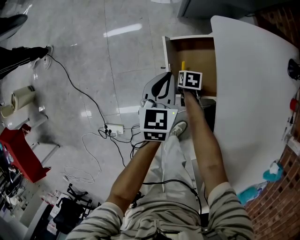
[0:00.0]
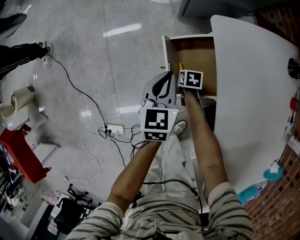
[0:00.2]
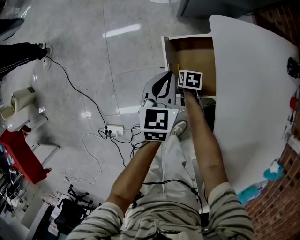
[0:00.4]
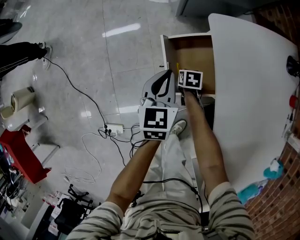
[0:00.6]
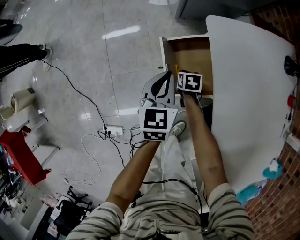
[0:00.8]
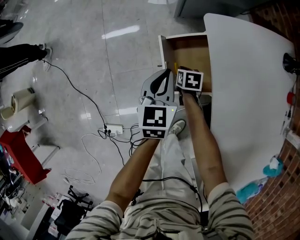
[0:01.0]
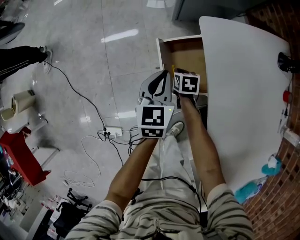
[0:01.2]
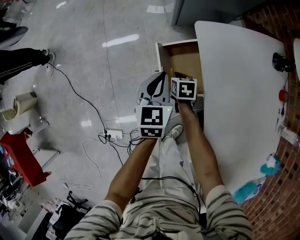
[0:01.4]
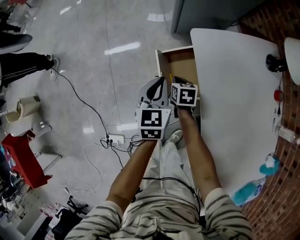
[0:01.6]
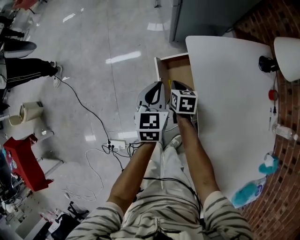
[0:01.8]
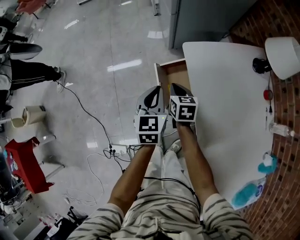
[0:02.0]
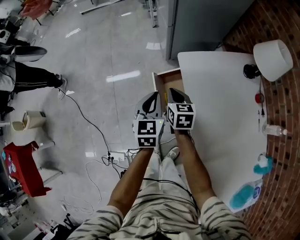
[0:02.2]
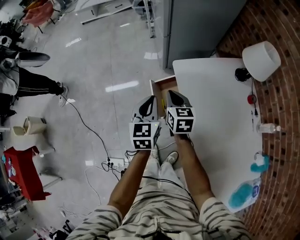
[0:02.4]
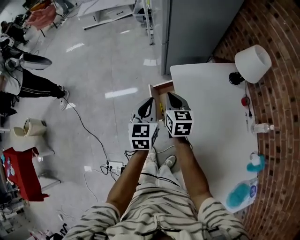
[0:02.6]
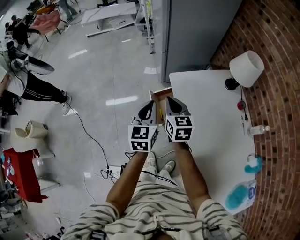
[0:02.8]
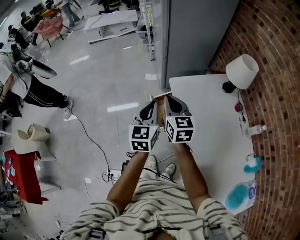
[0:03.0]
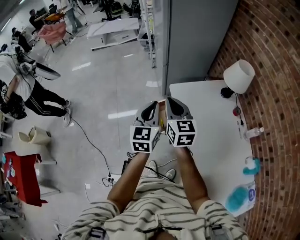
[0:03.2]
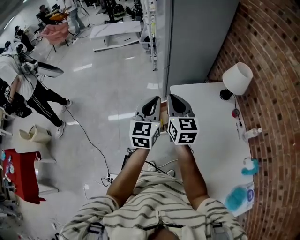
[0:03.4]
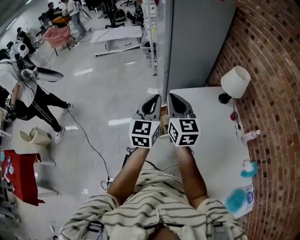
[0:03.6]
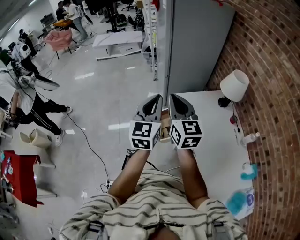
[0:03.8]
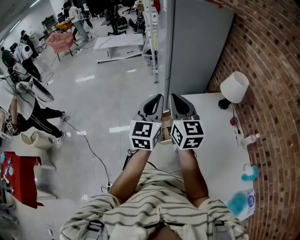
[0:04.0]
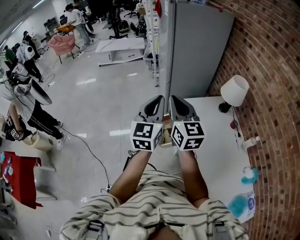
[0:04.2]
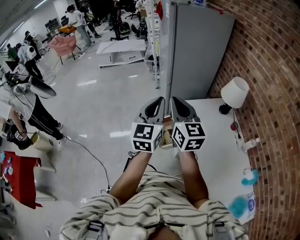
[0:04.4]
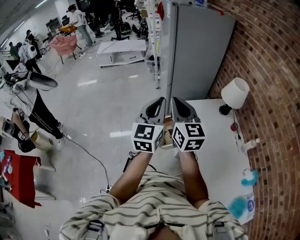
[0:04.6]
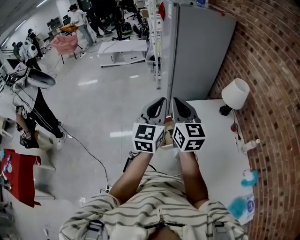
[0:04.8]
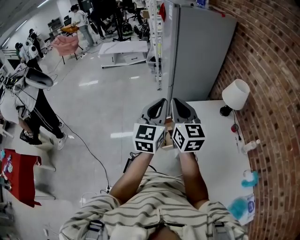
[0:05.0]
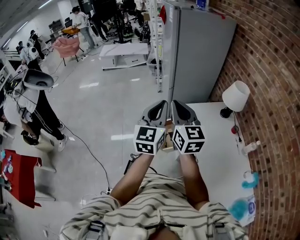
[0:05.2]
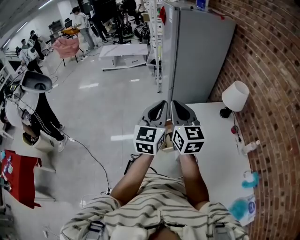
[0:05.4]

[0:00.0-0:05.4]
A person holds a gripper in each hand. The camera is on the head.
0:00.0 to 0:01.4: The right gripper goes about 10 cm upward. Meanwhile the left gripper travels upward by some 5 cm.
0:01.4 to 0:02.8: The left gripper shifts about 25 cm upward. The right gripper shifts approximately 40 cm upward, and angles its fingers upward, by roughly 40 degrees.
0:02.8 to 0:04.0: The two grippers go roughly 20 cm upward. The right gripper changes its angle by approximately 20 degrees.
0:04.0 to 0:05.4: There are only small adjustments of the grippers.

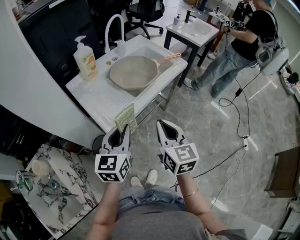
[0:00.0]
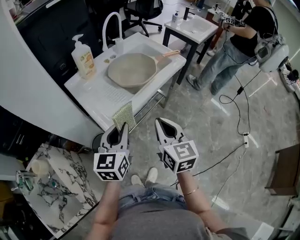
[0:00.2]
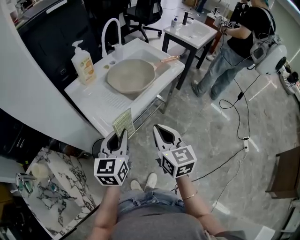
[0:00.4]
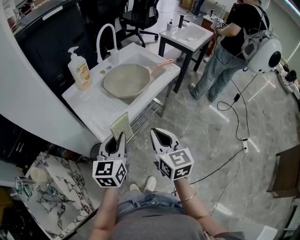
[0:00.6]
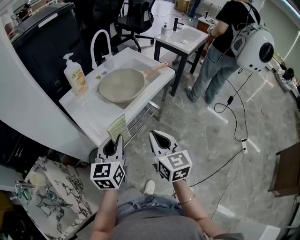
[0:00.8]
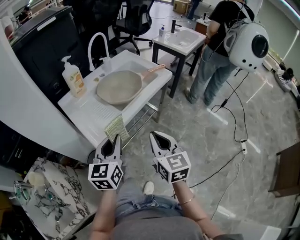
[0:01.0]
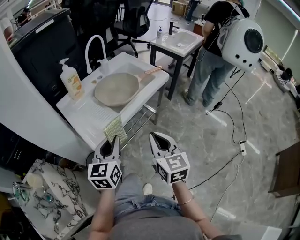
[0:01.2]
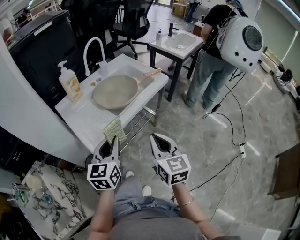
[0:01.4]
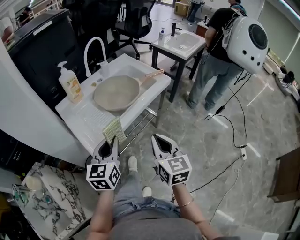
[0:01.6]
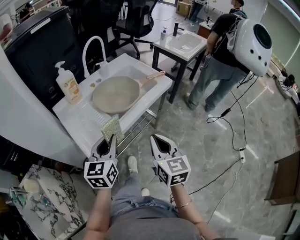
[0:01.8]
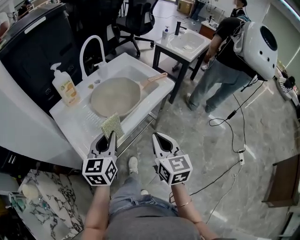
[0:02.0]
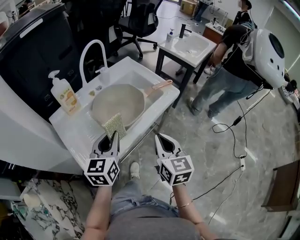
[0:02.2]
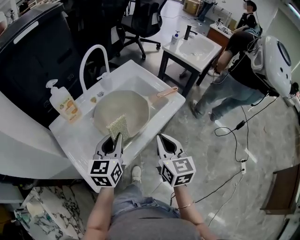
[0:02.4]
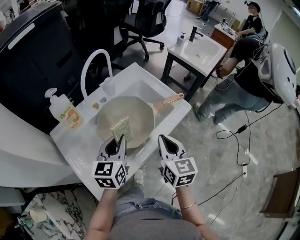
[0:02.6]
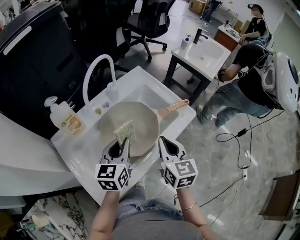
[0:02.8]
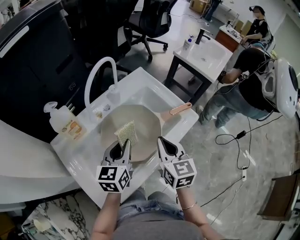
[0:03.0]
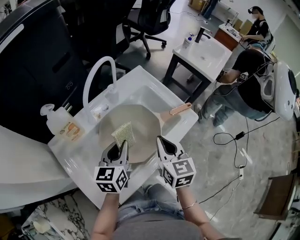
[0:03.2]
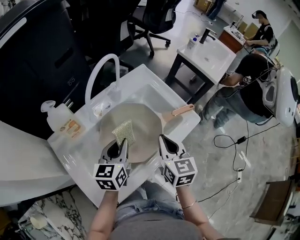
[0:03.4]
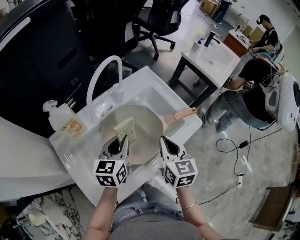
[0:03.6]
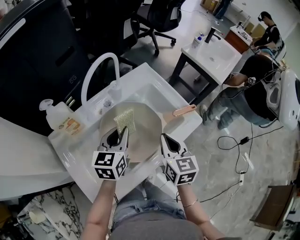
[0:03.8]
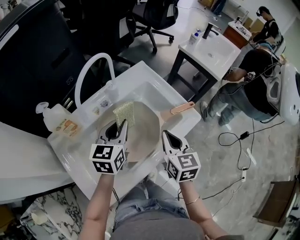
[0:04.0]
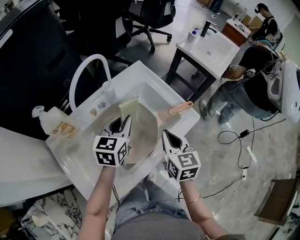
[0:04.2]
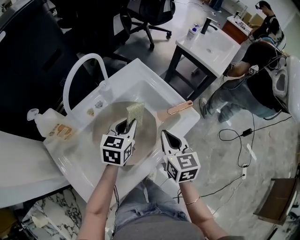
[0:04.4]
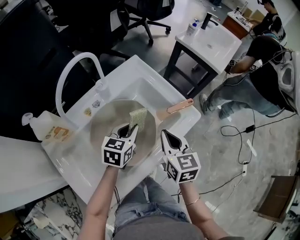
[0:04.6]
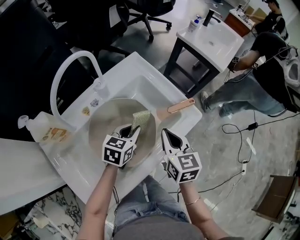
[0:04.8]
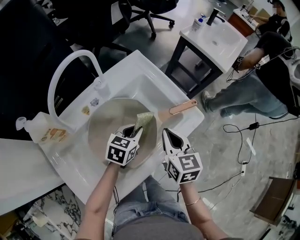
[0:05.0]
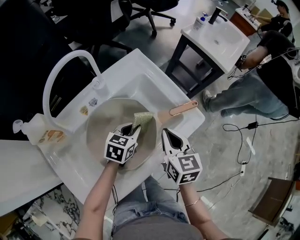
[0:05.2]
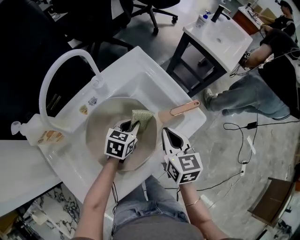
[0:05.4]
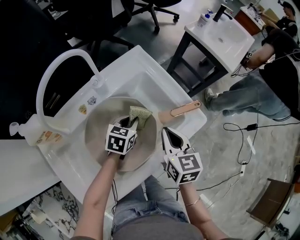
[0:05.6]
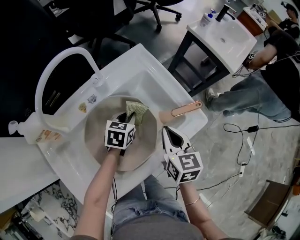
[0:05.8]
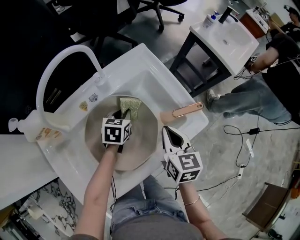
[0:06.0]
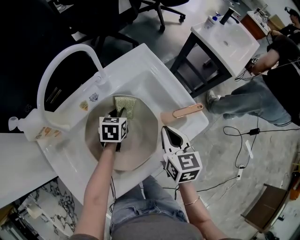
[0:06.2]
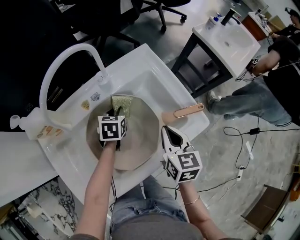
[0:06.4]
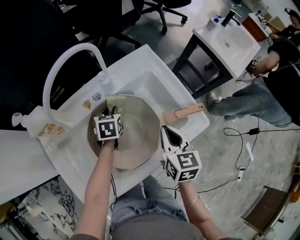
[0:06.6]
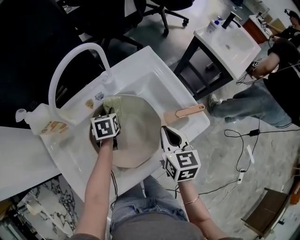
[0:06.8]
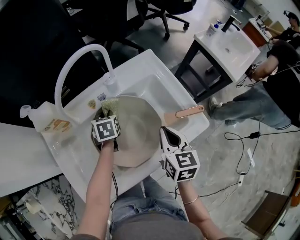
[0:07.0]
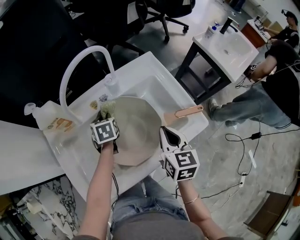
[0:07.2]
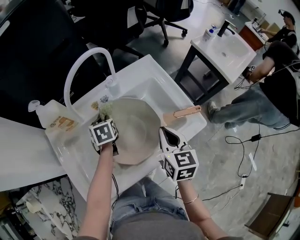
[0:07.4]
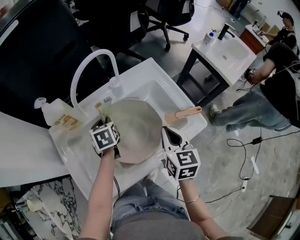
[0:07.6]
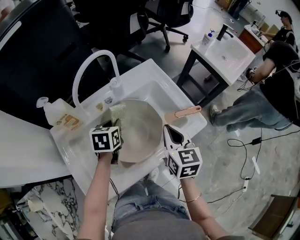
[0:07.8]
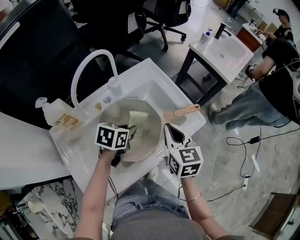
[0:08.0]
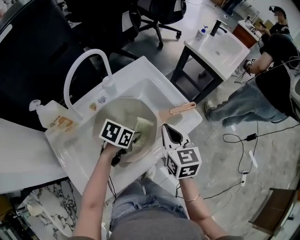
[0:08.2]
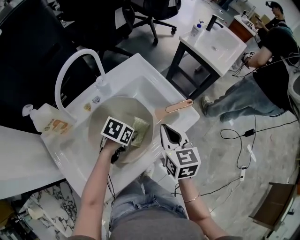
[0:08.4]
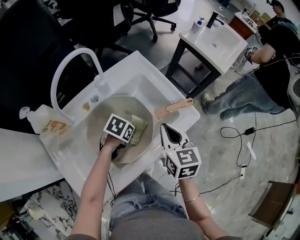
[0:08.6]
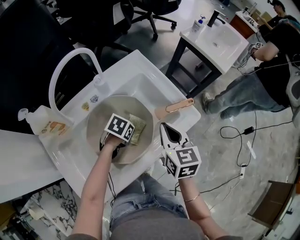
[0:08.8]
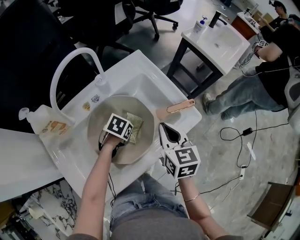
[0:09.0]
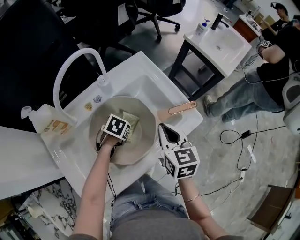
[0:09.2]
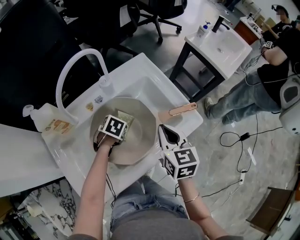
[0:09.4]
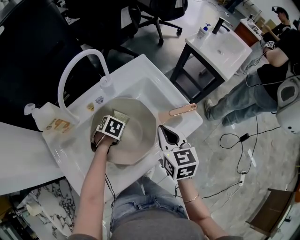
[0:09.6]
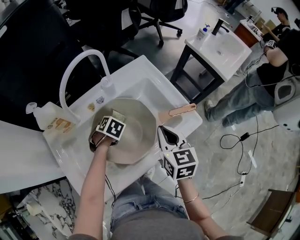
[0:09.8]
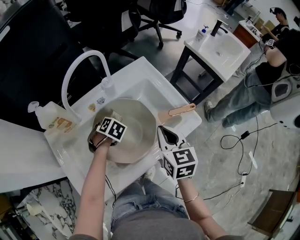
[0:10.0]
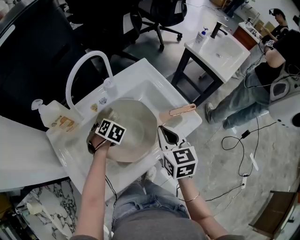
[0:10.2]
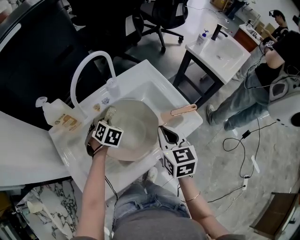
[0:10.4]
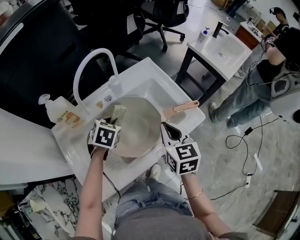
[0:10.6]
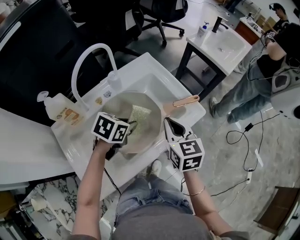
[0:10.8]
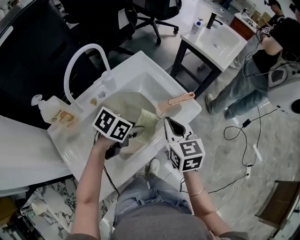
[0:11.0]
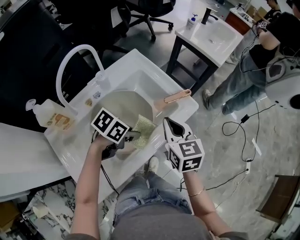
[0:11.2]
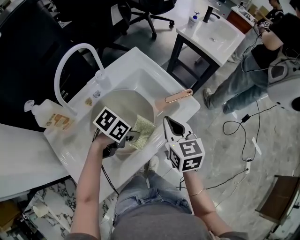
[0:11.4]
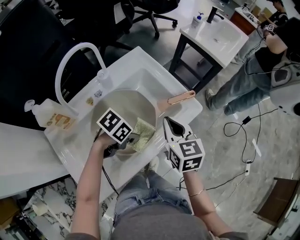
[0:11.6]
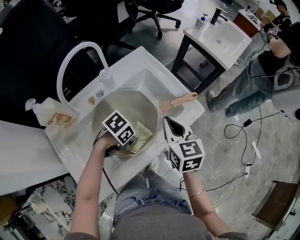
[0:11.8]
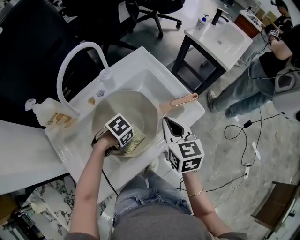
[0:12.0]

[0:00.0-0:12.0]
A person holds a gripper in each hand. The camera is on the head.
0:00.0 to 0:01.6: The right gripper shifts roughly 10 cm to the right. Meanwhile the left gripper moves to the right, roughly 5 cm.
0:01.6 to 0:03.0: The two grippers go about 30 cm forward.
0:03.0 to 0:04.4: The left gripper moves forward and to the right, approximately 10 cm. Meanwhile the right gripper heads forward, covering about 5 cm.
0:04.4 to 0:06.0: The left gripper shifts roughly 15 cm downward and forward, and swivels about 20 degrees; the right gripper moves forward, roughly 5 cm.
0:06.0 to 0:07.6: The right gripper moves upward, roughly 5 cm. The left gripper shifts about 15 cm to the left and upward, and changes its angle by some 30 degrees.
0:07.6 to 0:09.0: The left gripper ends up about 20 cm from where it was, and rotates some 60 degrees.
0:09.0 to 0:10.4: The left gripper changes place by approximately 15 cm, and rotates some 40 degrees.
0:10.4 to 0:12.0: The left gripper ends up some 20 cm from where it was, and changes its angle by approximately 60 degrees.

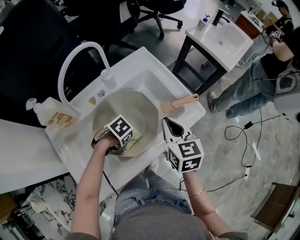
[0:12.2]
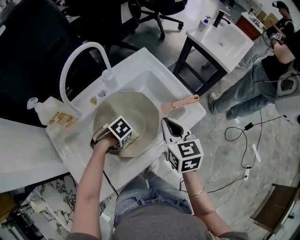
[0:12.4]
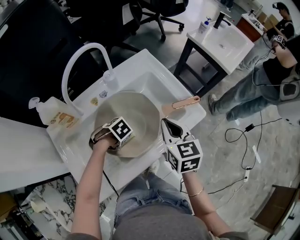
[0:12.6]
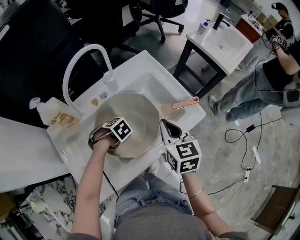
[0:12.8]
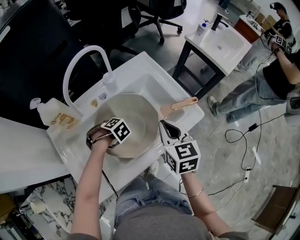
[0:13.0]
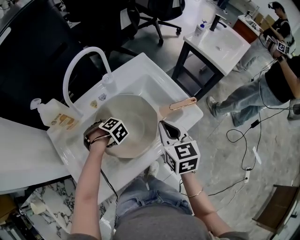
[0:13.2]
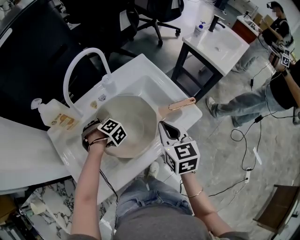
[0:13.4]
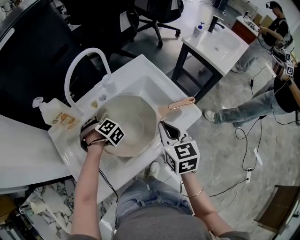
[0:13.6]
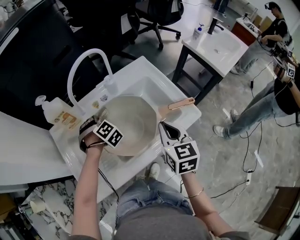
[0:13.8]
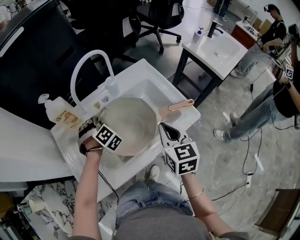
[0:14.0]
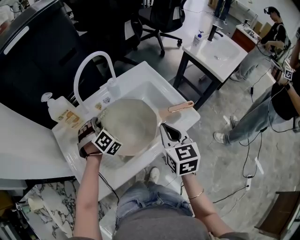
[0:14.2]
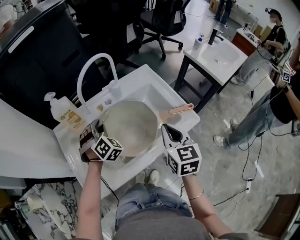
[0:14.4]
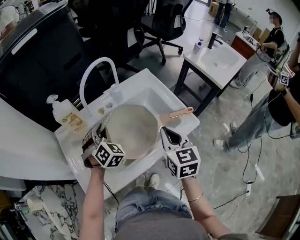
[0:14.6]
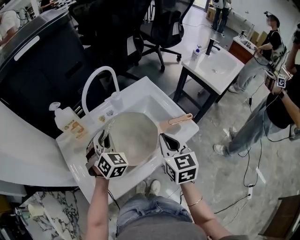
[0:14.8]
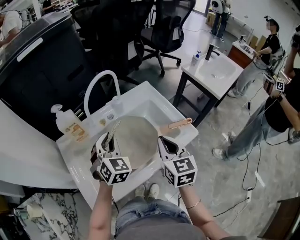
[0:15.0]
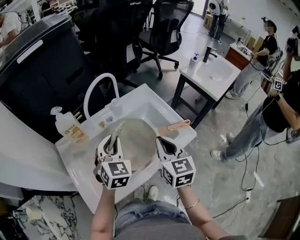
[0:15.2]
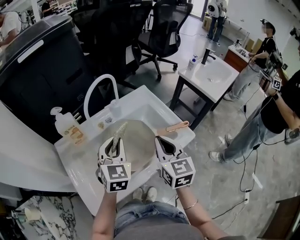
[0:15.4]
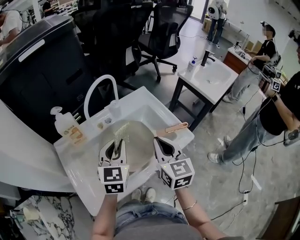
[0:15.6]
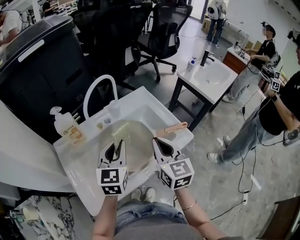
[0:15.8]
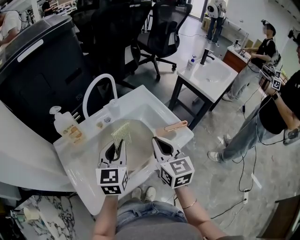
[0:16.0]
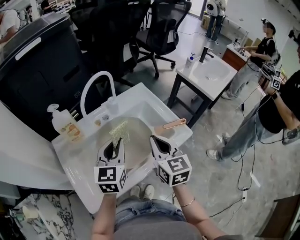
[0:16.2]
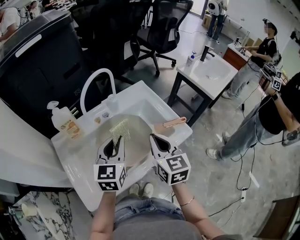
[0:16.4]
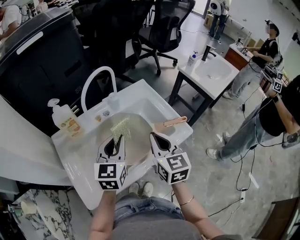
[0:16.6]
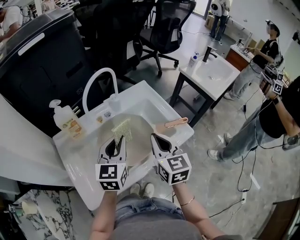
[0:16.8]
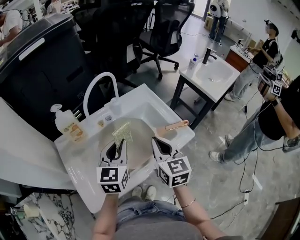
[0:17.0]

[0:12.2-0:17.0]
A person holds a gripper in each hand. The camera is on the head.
0:12.2 to 0:13.8: The left gripper shifts by roughly 15 cm, and turns by roughly 60 degrees.
0:13.8 to 0:15.4: The right gripper goes some 5 cm upward, while the left gripper heads upward and backward, covering about 20 cm, and points its fingers roughly 30 degrees further upward.
0:15.4 to 0:17.0: The left gripper turns by about 20 degrees.

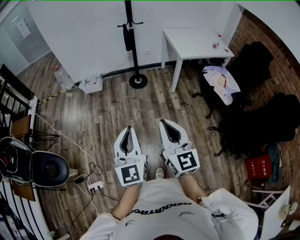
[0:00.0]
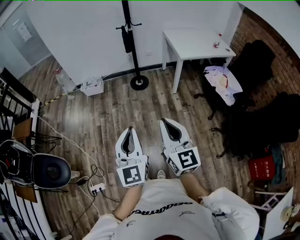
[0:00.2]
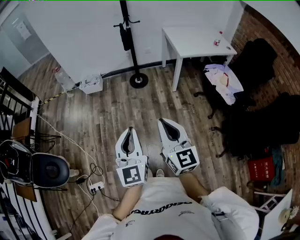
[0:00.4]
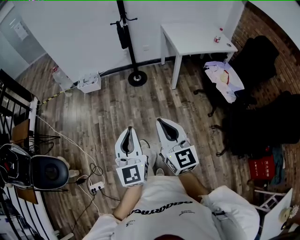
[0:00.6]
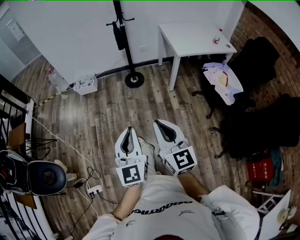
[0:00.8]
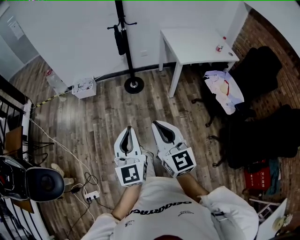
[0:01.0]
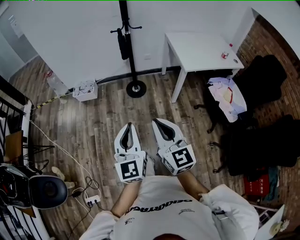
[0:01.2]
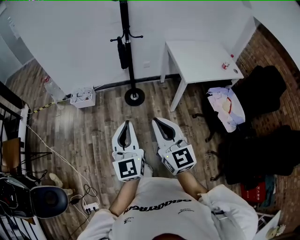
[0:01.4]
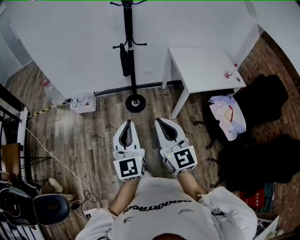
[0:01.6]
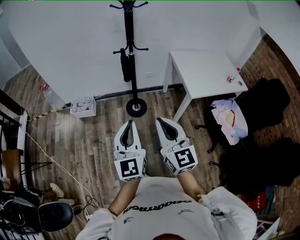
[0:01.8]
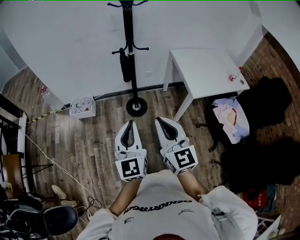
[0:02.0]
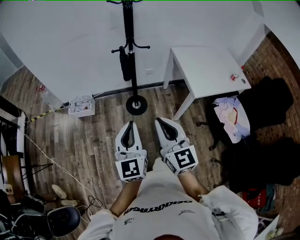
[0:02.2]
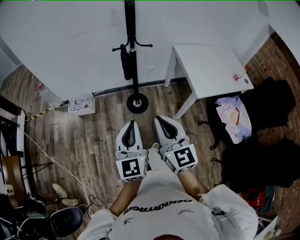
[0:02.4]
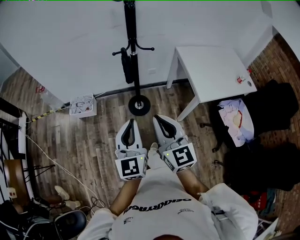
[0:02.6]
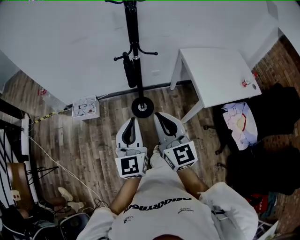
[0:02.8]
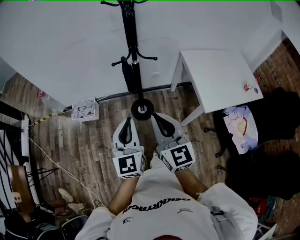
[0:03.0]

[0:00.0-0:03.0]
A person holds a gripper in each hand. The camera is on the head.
0:00.0 to 0:01.6: The two grippers travel together, forward, roughly 50 cm.
0:01.6 to 0:03.0: The grippers both shift forward by approximately 30 cm.
